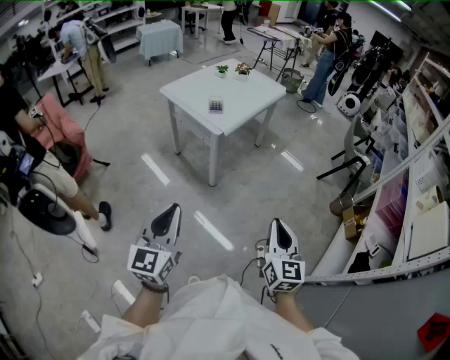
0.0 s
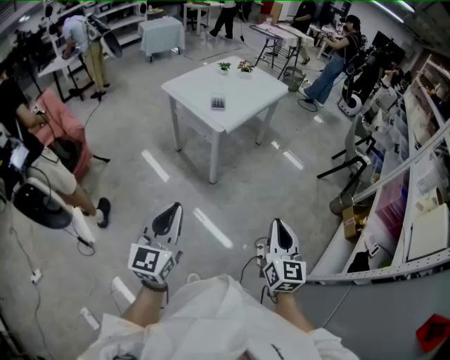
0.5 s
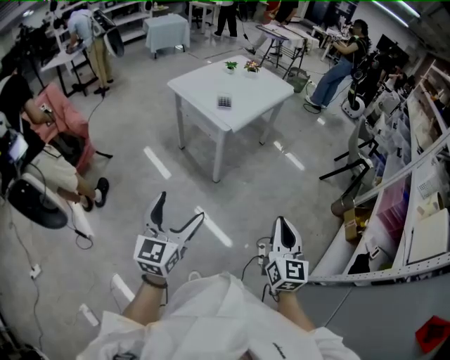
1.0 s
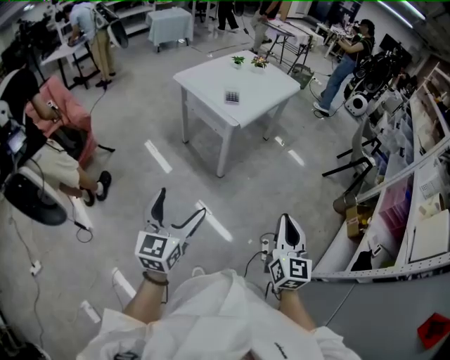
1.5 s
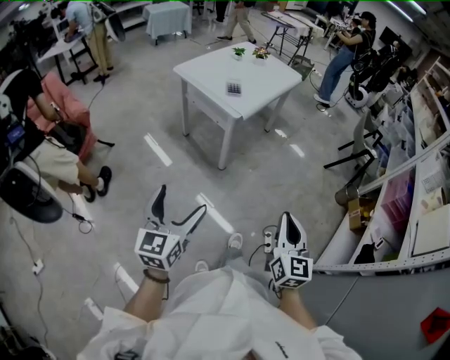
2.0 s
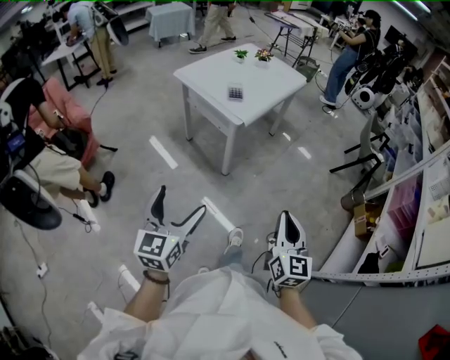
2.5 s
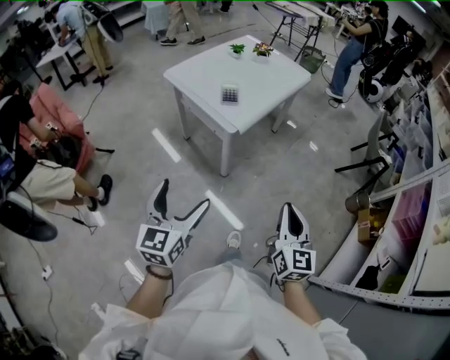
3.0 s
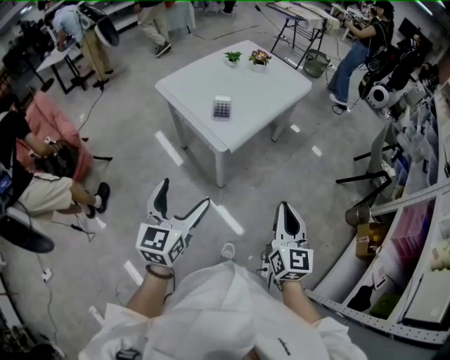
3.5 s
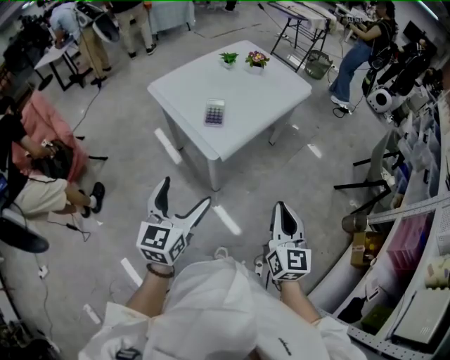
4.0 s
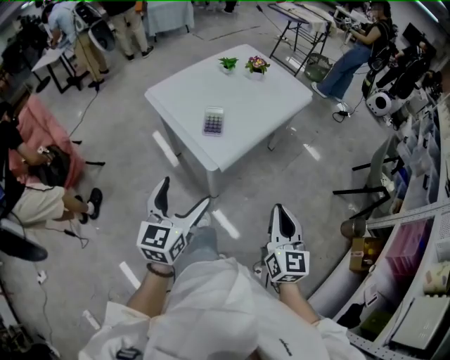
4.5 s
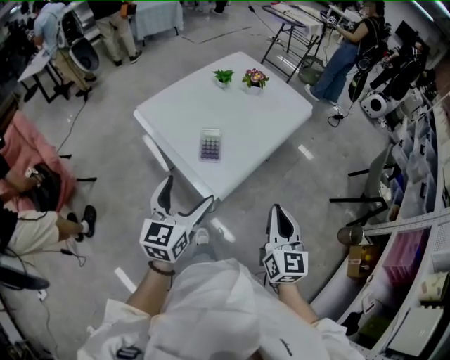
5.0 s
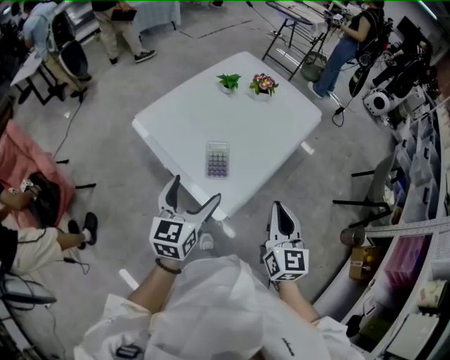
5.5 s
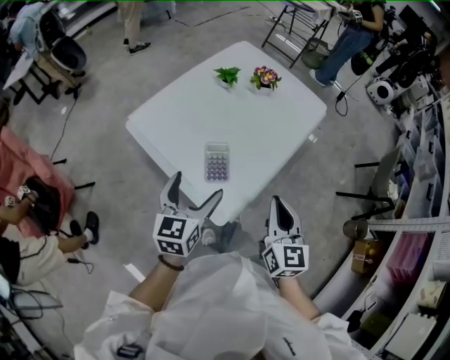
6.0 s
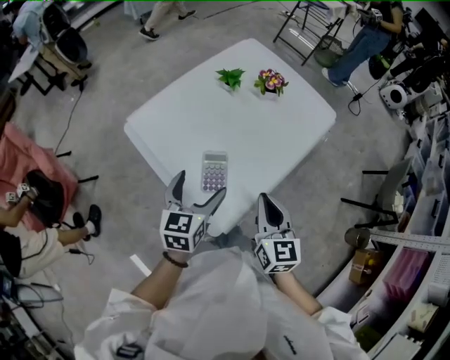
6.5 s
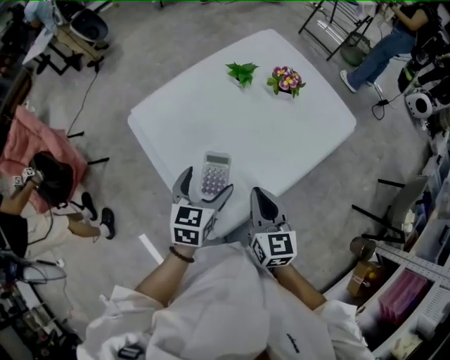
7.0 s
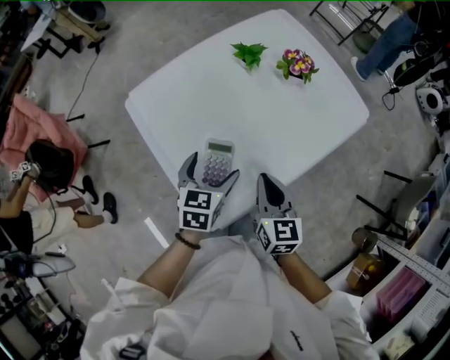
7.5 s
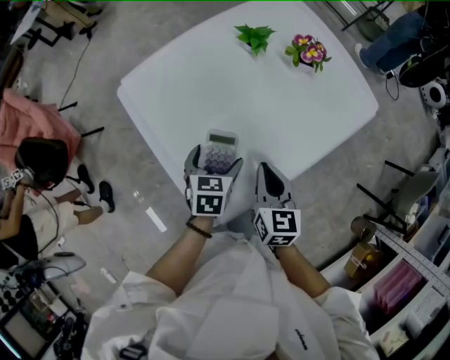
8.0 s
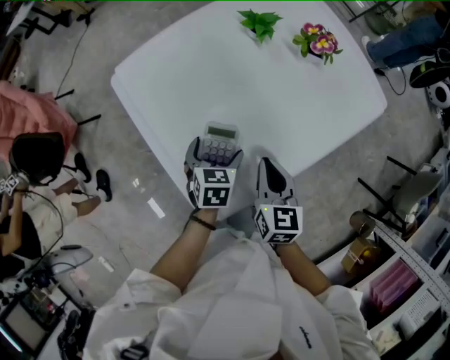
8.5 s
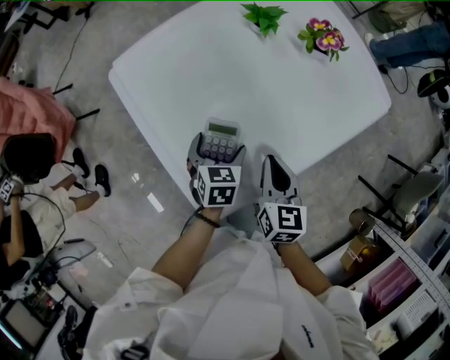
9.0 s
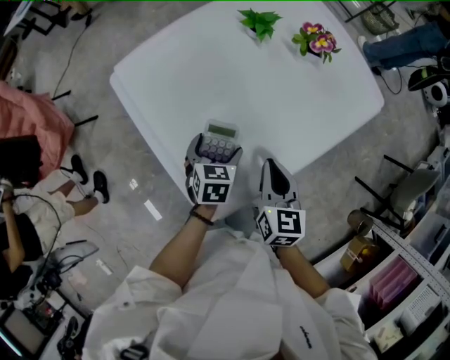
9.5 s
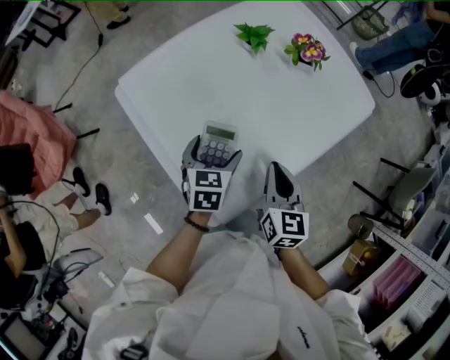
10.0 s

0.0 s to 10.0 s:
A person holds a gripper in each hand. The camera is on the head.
0.0 to 2.0 s: The two grippers go roughly 10 cm to the left. The left gripper opens its fingers.
2.0 to 4.0 s: Both grippers travel together forward, some 35 cm.
4.0 to 6.0 s: The right gripper travels forward and to the left by about 30 cm. The left gripper shifts about 35 cm forward.
6.0 to 8.0 s: The left gripper goes about 25 cm downward and forward, and angles its fingers downward, by about 30 degrees, while the right gripper is displaced forward and downward by some 25 cm, and swivels about 20 degrees.
8.0 to 10.0 s: The grippers move only a little.

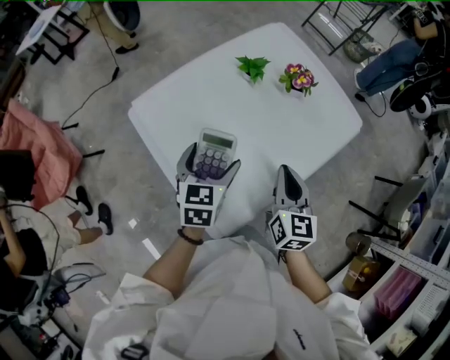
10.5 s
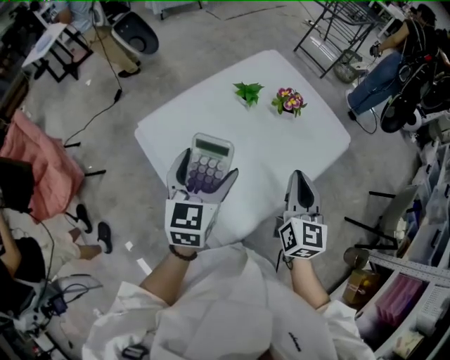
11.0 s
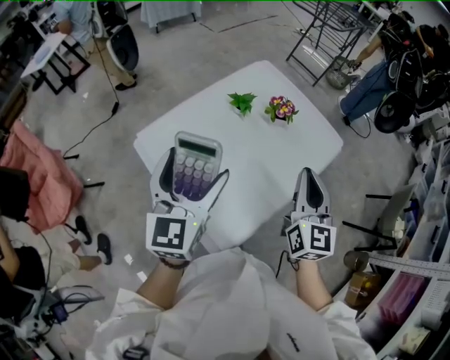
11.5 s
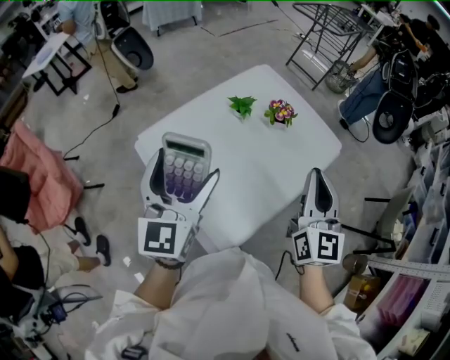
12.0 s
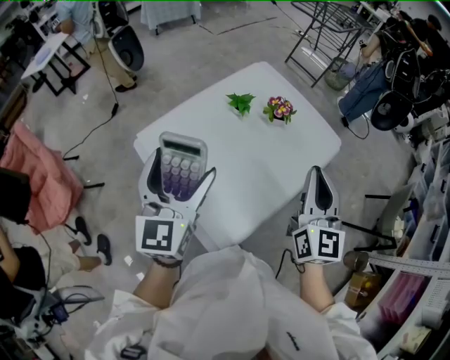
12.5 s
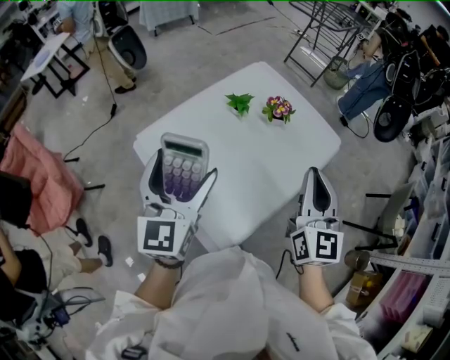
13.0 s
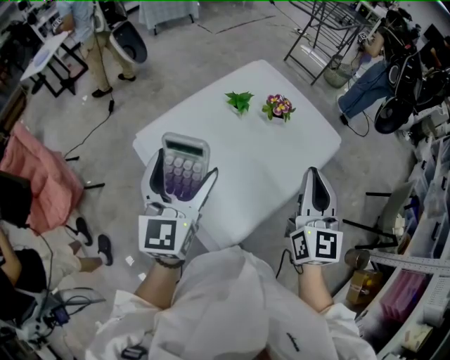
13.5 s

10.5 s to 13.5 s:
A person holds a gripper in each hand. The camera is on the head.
10.5 to 12.0 s: Both grippers travel together upward, about 20 cm. The right gripper turns by roughly 20 degrees; the left gripper tilts its fingers some 30 degrees upward.
12.0 to 13.5 s: The grippers move only a little.

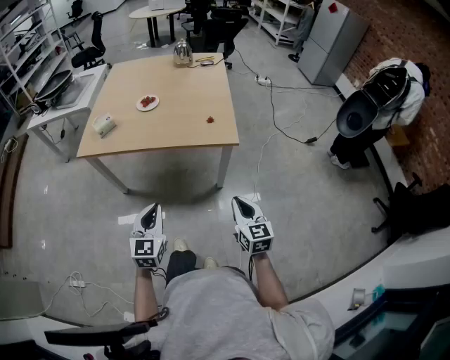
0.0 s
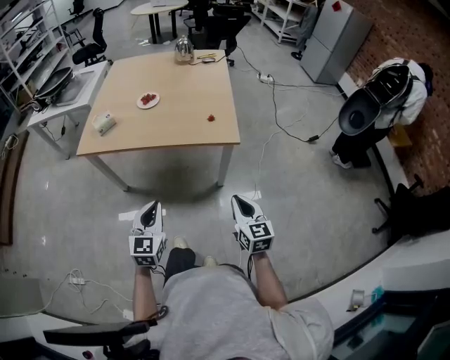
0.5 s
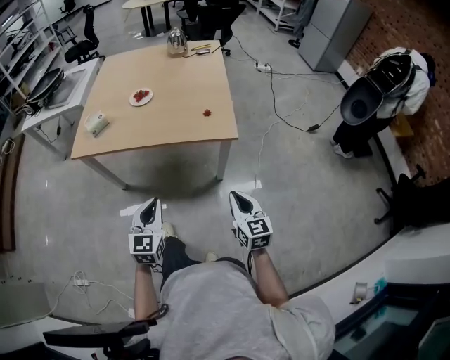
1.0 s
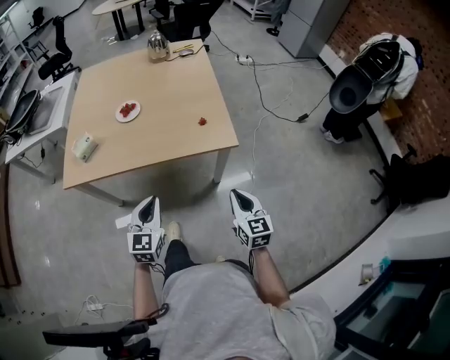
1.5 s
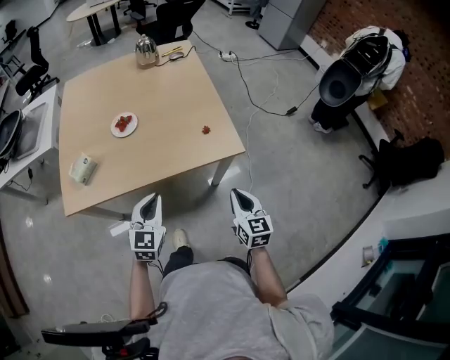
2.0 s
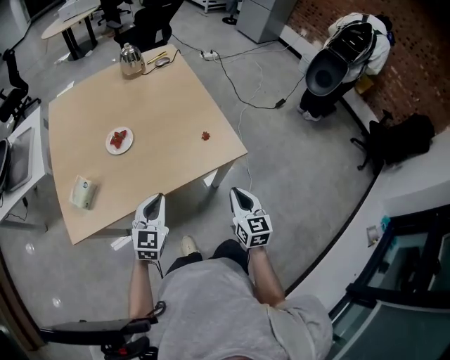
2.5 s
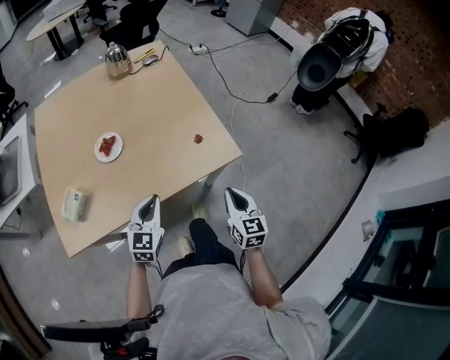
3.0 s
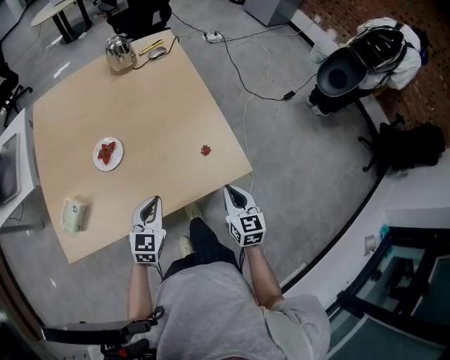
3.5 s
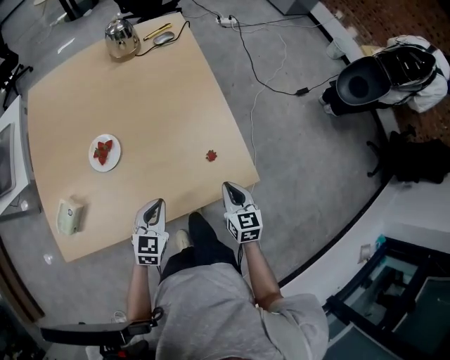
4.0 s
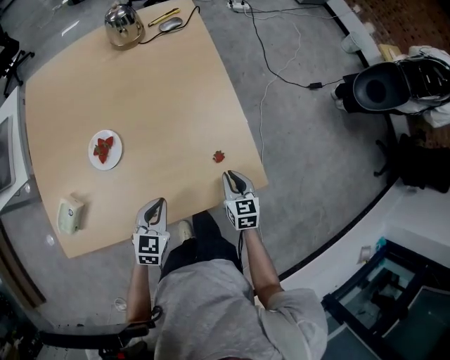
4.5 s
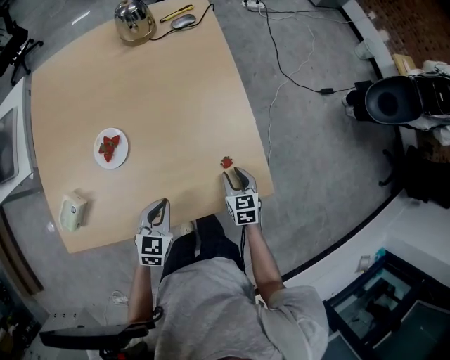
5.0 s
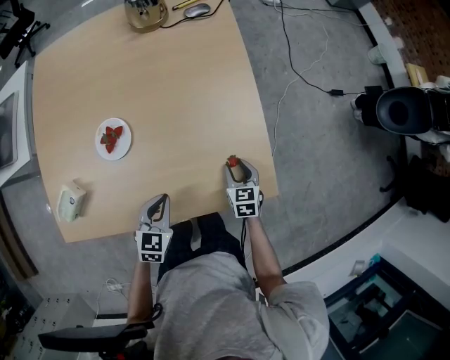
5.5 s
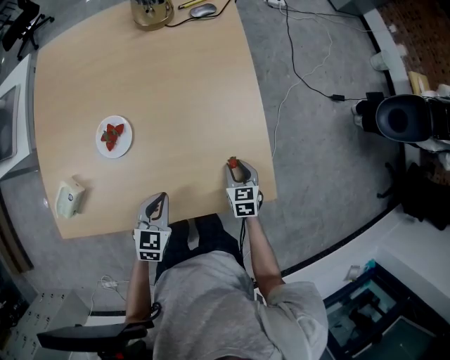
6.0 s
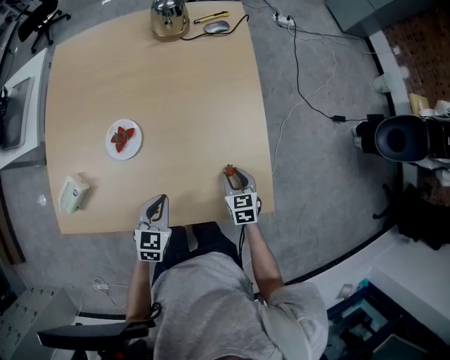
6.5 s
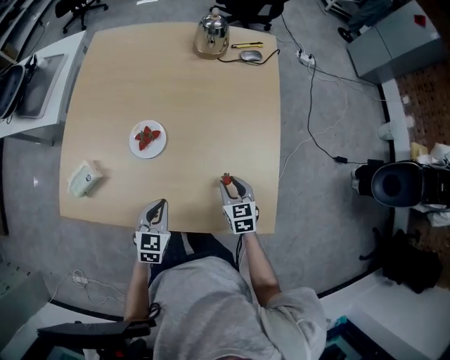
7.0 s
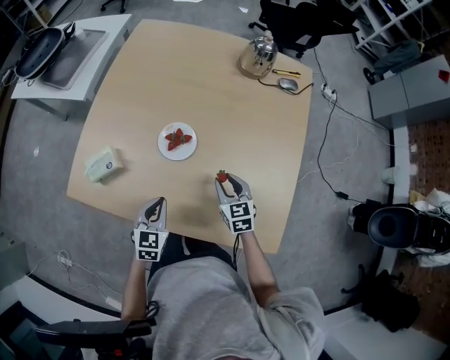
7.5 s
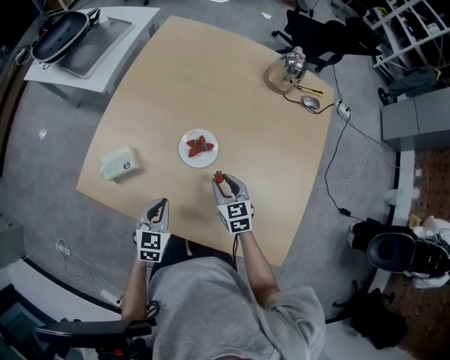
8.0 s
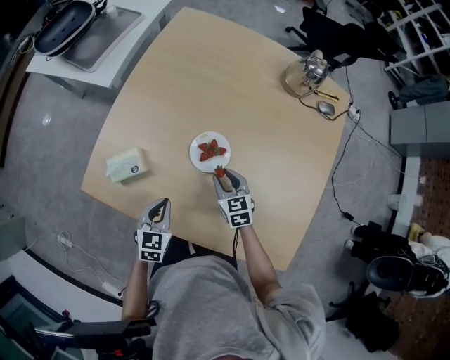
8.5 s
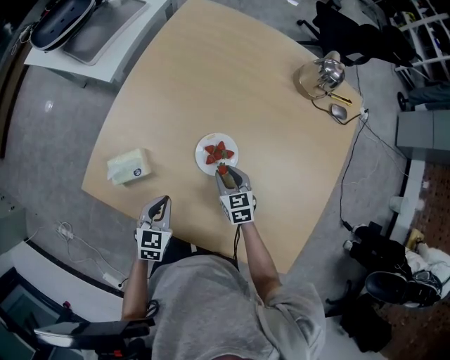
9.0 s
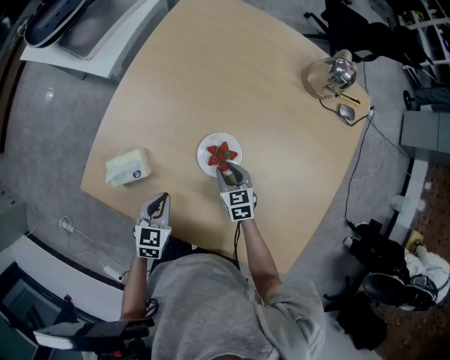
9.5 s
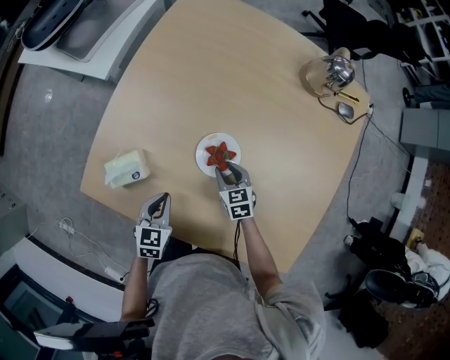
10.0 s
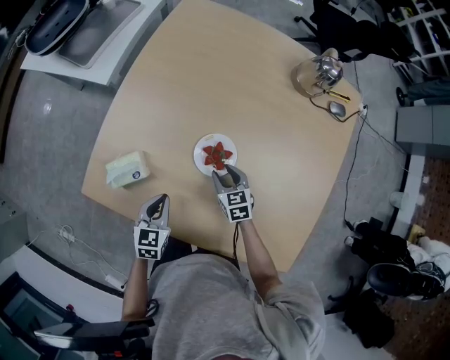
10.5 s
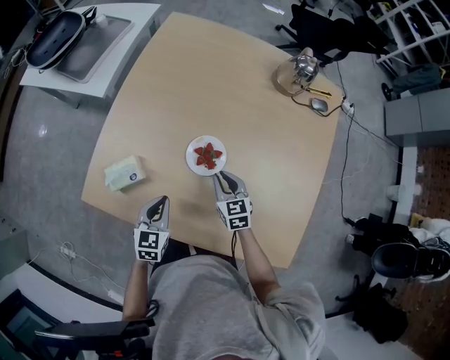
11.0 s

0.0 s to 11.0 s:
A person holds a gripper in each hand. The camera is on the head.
0.0 to 2.0 s: The left gripper shifts about 25 cm forward, and swivels approximately 20 degrees. Meanwhile the right gripper travels forward and to the left by some 20 cm.
2.0 to 3.5 s: Both grippers move forward, approximately 20 cm.
3.5 to 5.5 s: The left gripper moves downward and forward, approximately 10 cm, while the right gripper is displaced forward and downward by approximately 25 cm, rotates approximately 20 degrees, and opens up.
5.5 to 7.5 s: The left gripper moves approximately 15 cm, and changes its angle by about 30 degrees, while the right gripper ends up about 25 cm from where it was, and changes its angle by some 30 degrees.
7.5 to 9.0 s: The left gripper is displaced to the left and forward by roughly 10 cm. Meanwhile the right gripper travels to the left, forward and downward by approximately 20 cm.
9.0 to 11.0 s: The right gripper is displaced upward by roughly 5 cm.

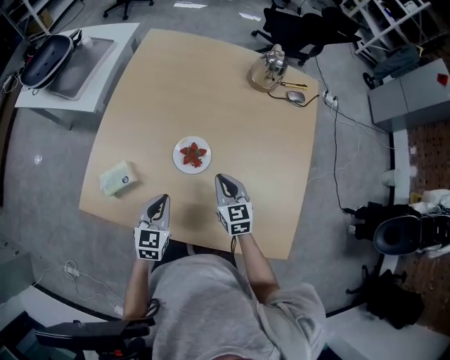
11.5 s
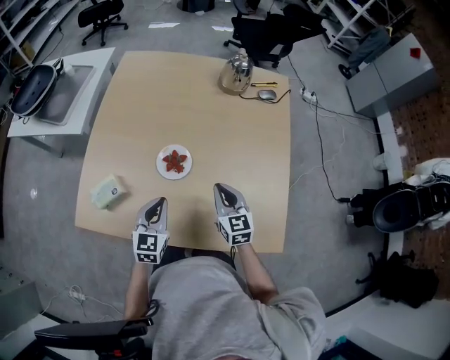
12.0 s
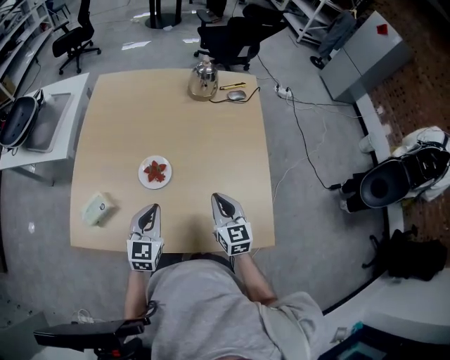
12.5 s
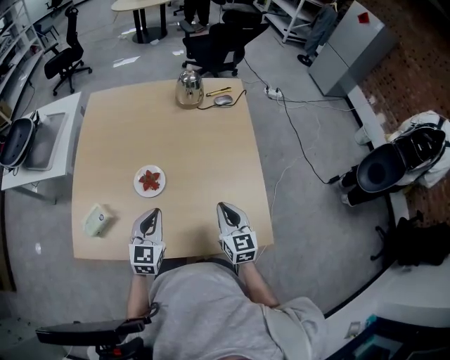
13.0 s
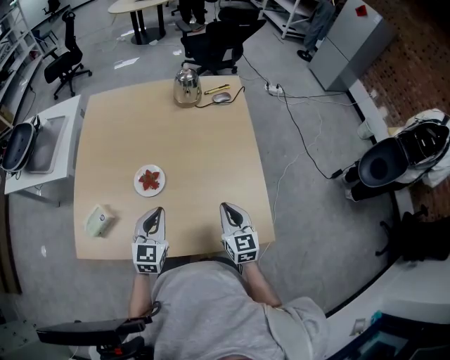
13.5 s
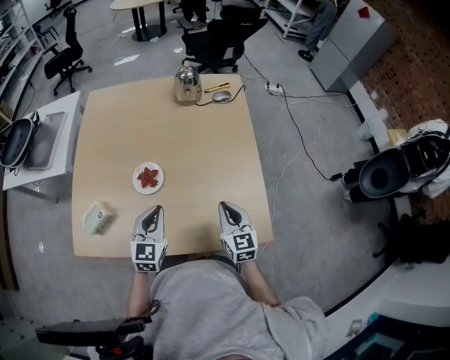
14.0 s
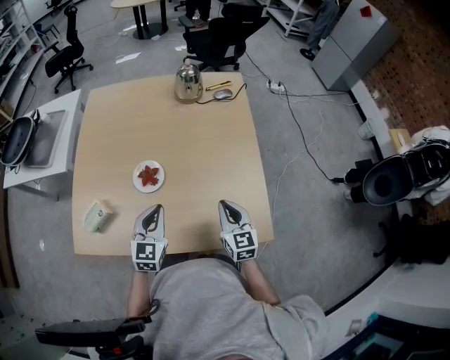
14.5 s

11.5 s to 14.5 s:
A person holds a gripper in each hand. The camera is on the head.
11.5 to 13.0 s: The right gripper travels to the right, backward and upward by about 20 cm, and turns by some 20 degrees. Meanwhile the left gripper heads to the right and upward, covering approximately 15 cm.
13.0 to 14.5 s: The grippers make only small movements.
